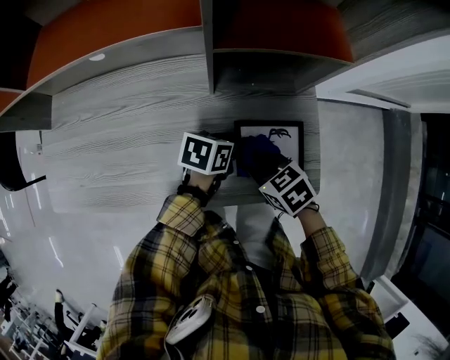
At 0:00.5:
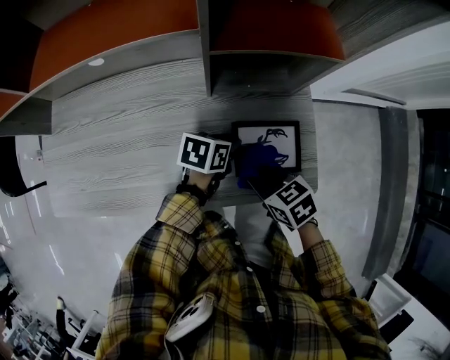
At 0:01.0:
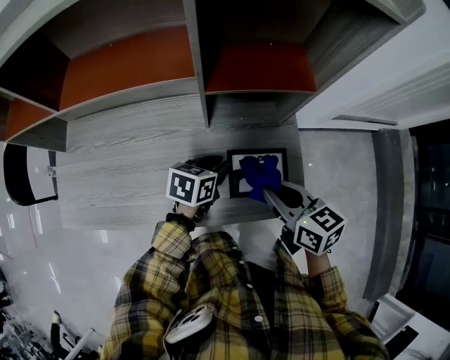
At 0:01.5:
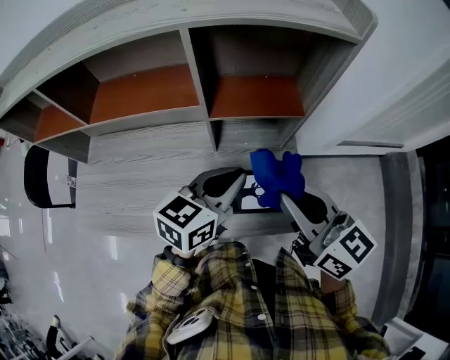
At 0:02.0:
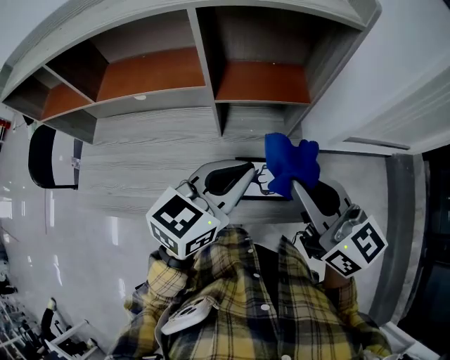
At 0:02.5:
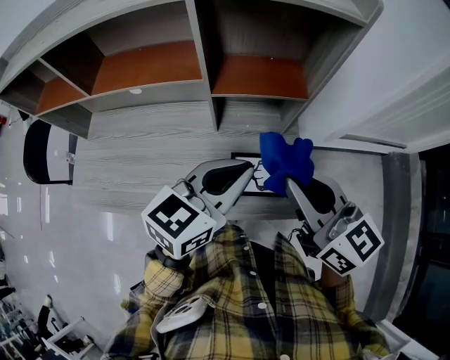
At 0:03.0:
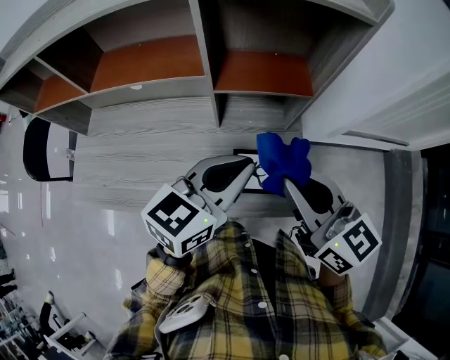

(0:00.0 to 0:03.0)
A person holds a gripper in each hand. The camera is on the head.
0:00.0 - 0:01.5: Both grippers travel together upward, about 30 cm. The right gripper tips its fingers upward by approximately 50 degrees. The left gripper swivels about 40 degrees.
0:01.5 - 0:03.0: The grippers move only a little.

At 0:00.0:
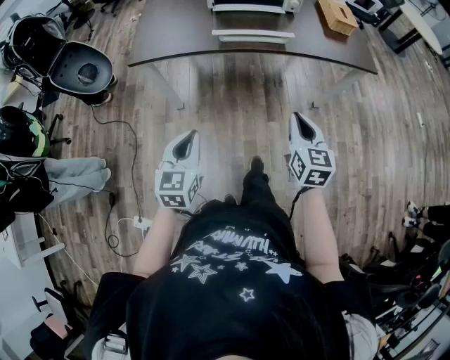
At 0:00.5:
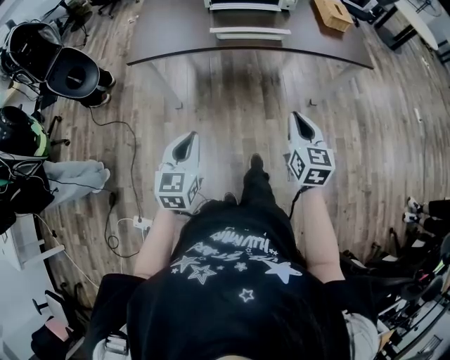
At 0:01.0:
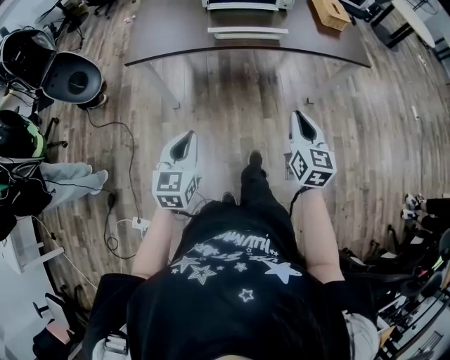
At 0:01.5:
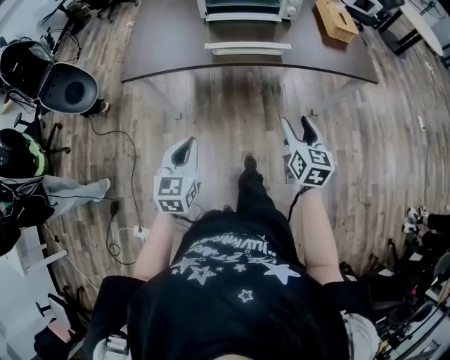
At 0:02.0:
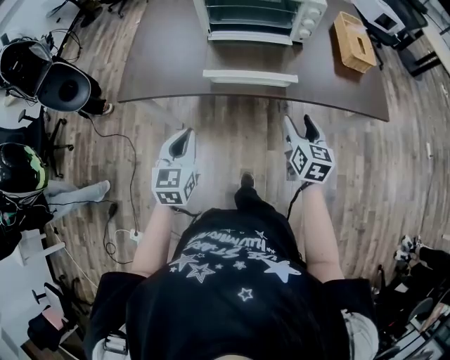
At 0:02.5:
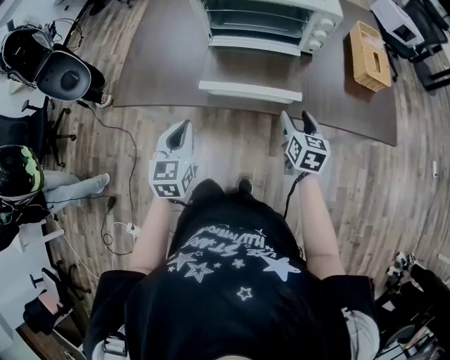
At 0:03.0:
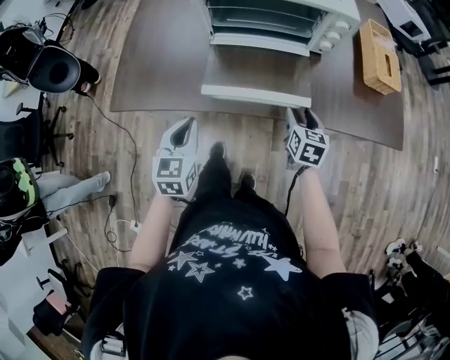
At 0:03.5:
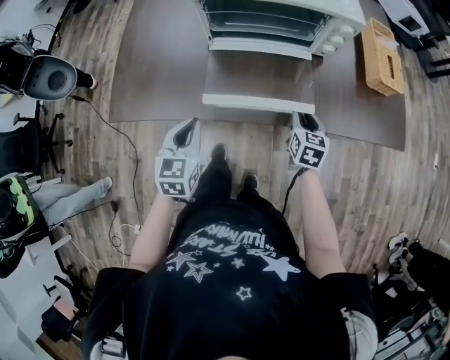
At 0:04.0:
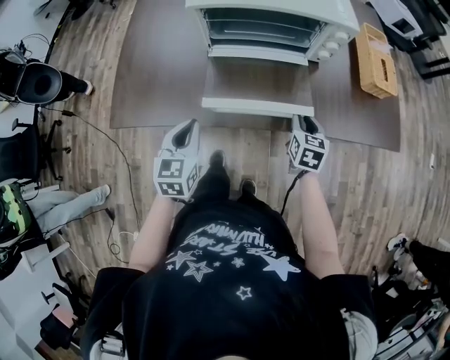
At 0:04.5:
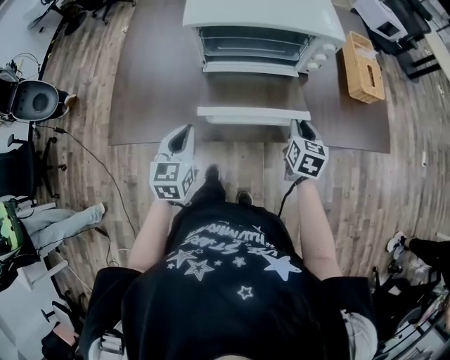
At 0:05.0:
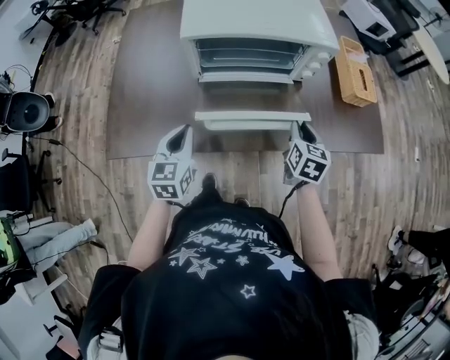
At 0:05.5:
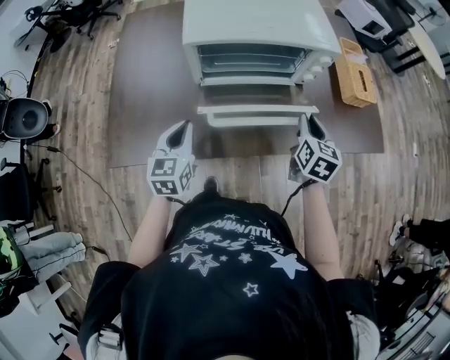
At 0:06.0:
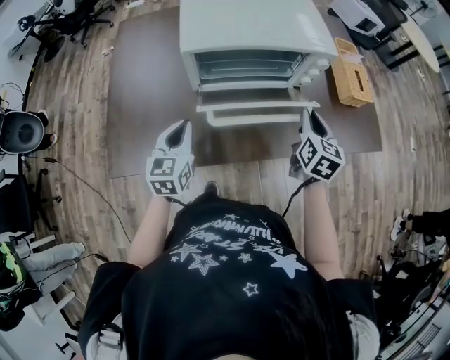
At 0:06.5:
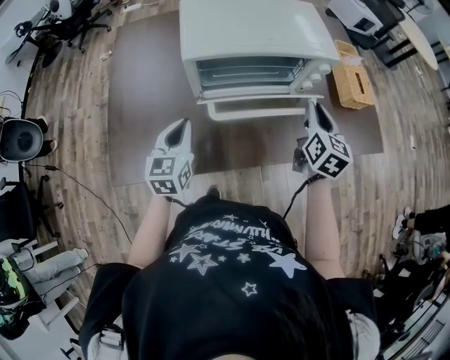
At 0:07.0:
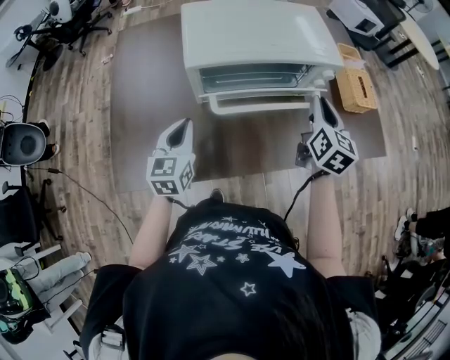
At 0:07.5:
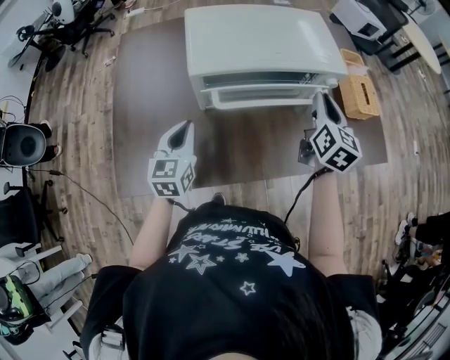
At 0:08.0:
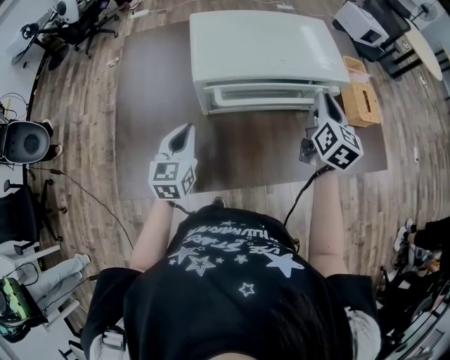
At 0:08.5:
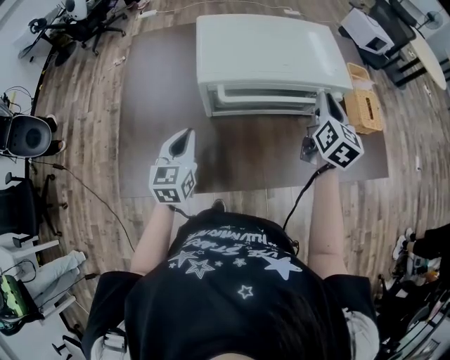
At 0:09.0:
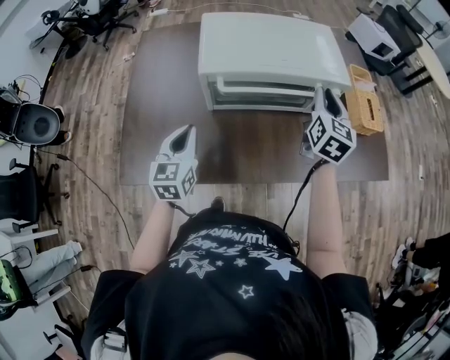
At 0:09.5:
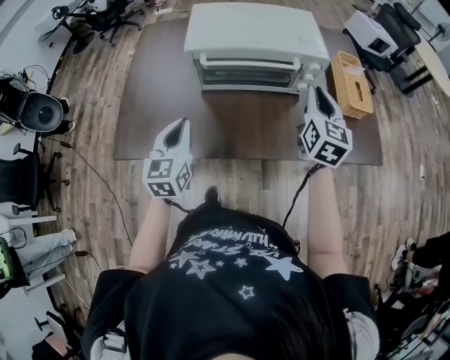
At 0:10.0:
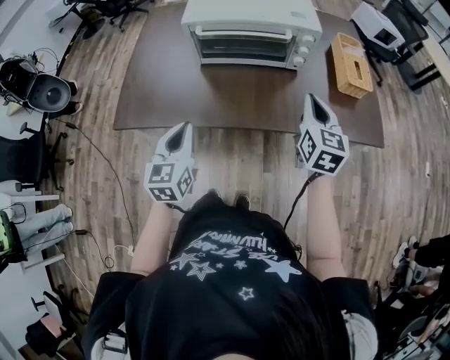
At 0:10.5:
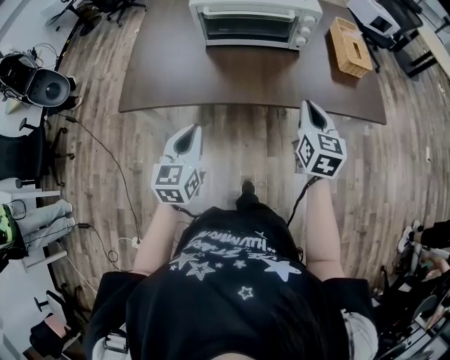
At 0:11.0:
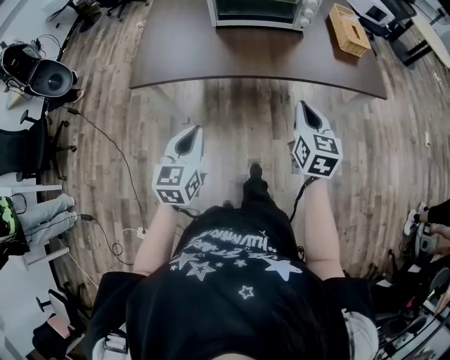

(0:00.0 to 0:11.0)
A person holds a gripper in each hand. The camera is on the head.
0:00.0 - 0:02.0: Both grippers travel together forward, about 25 cm. The right gripper opens its fingers.
0:02.0 - 0:03.5: The right gripper moves forward and downward, roughly 20 cm, and closes up, while the left gripper shifts some 15 cm forward.
0:03.5 - 0:05.5: The left gripper is displaced forward by approximately 10 cm. Meanwhile the right gripper is displaced upward by about 15 cm.
0:05.5 - 0:07.5: The right gripper goes about 15 cm forward and upward, while the left gripper travels forward by roughly 10 cm.
0:07.5 - 0:09.0: There are only small adjustments of the grippers.
0:09.0 - 0:11.0: The pair of grippers is taken backward, about 40 cm.

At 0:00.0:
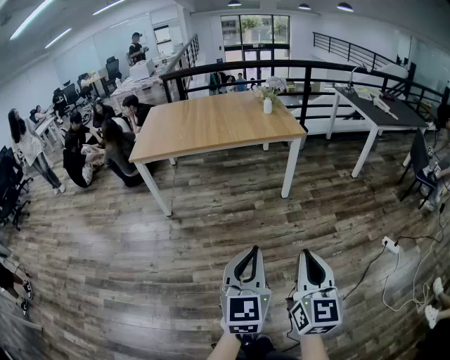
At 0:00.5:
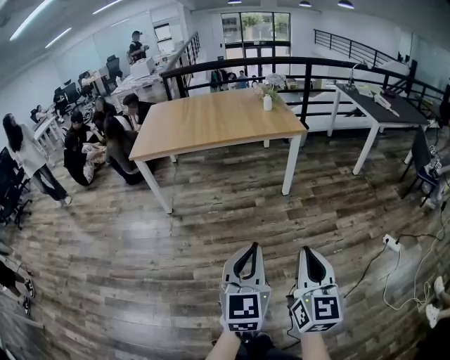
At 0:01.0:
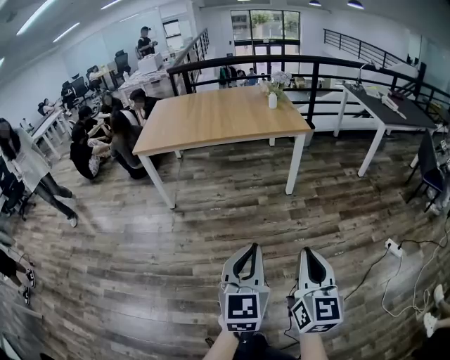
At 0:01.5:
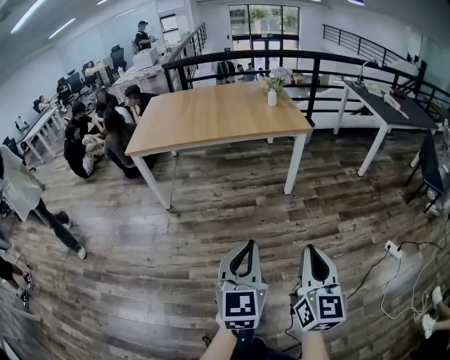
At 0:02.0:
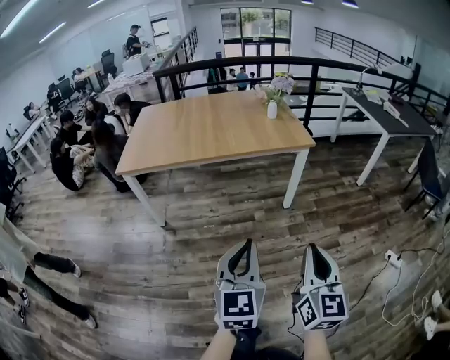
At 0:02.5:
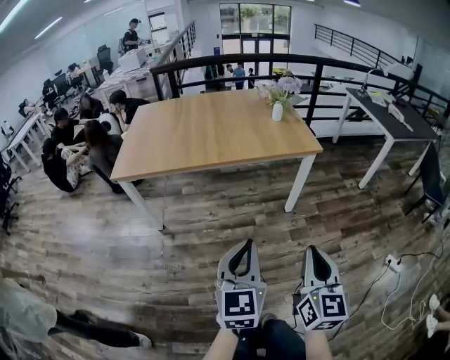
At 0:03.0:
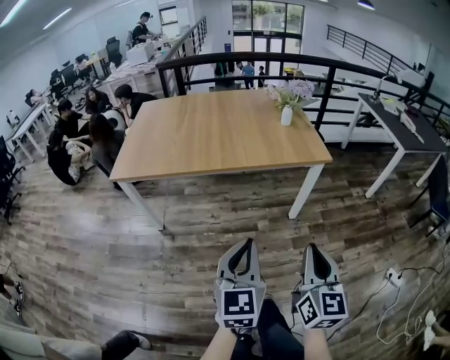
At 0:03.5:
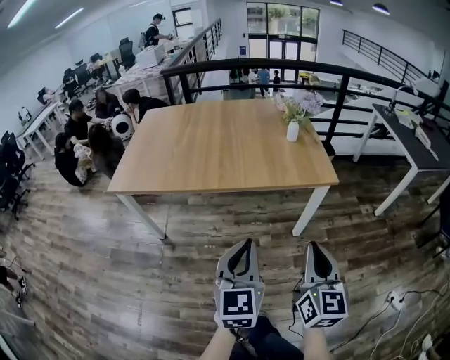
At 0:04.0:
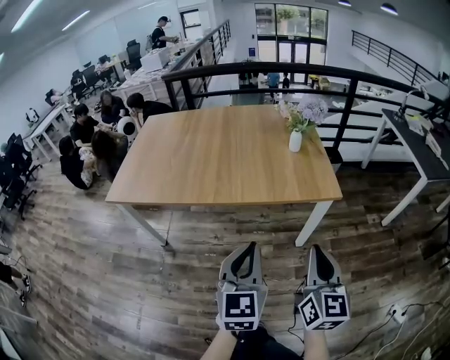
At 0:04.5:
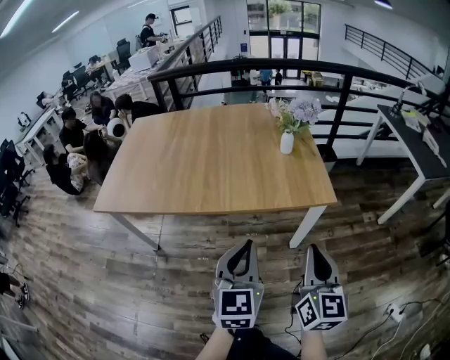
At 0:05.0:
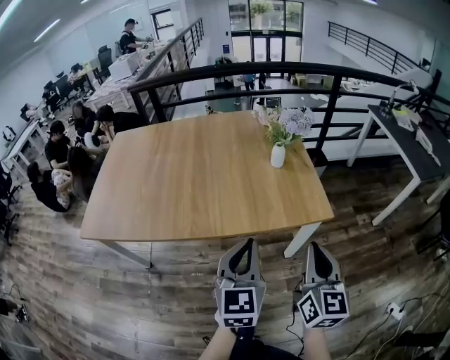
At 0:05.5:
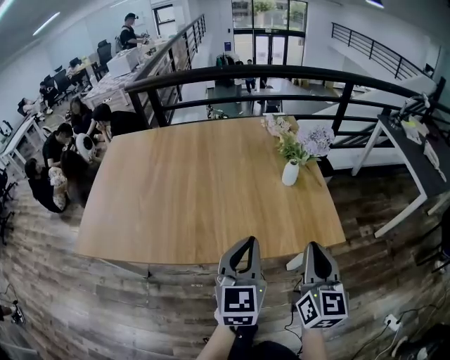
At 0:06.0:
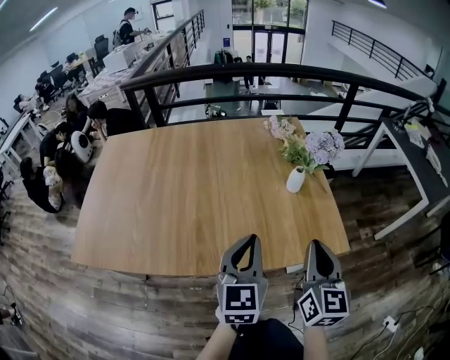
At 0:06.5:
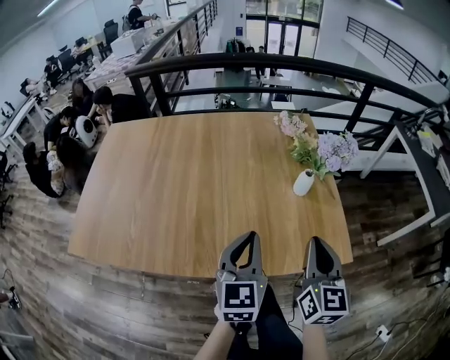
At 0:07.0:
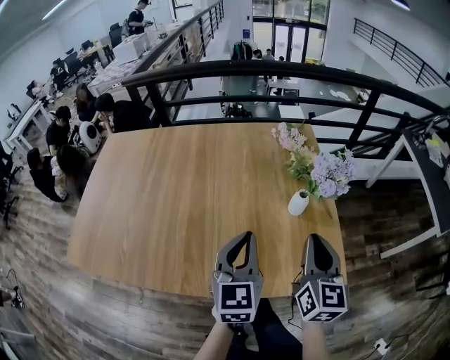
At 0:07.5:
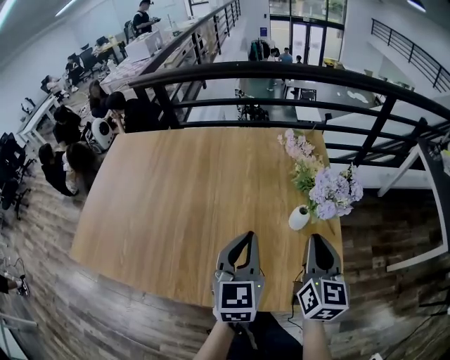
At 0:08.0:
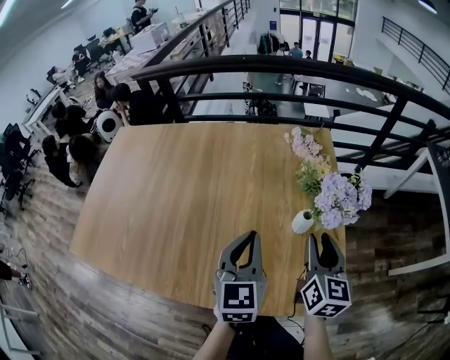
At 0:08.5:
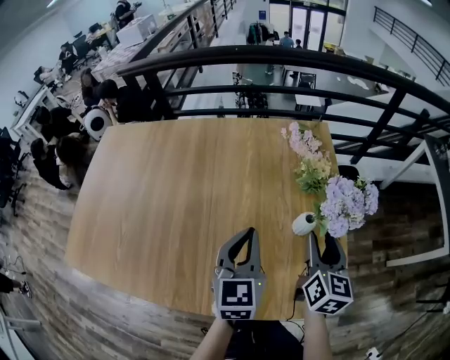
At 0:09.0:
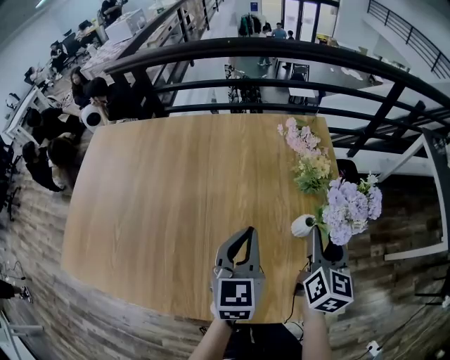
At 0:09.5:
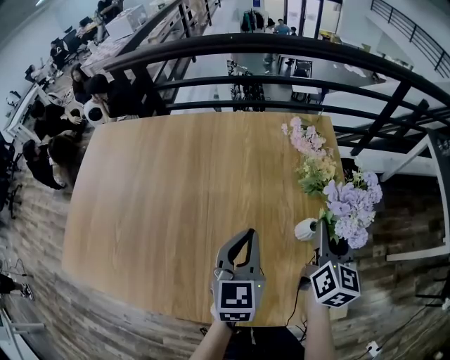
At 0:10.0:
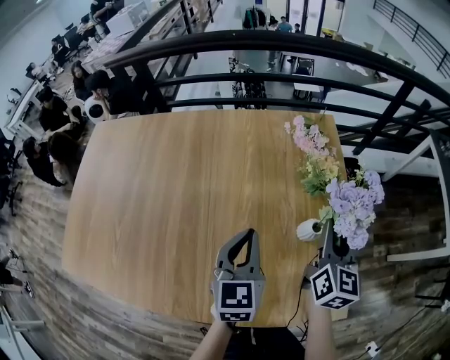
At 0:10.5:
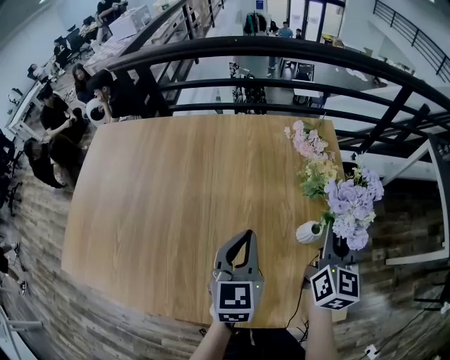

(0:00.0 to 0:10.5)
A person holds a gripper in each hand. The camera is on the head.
0:00.0 - 0:02.0: Both grippers travel together forward, roughly 20 cm.
0:02.0 - 0:04.0: Both grippers move forward, some 35 cm.
0:04.0 - 0:06.5: The grippers both shift forward by about 35 cm.
0:06.5 - 0:08.5: Both grippers travel together forward, some 20 cm. The right gripper opens its fingers.
0:08.5 - 0:10.5: The right gripper travels forward by approximately 5 cm, and closes up.

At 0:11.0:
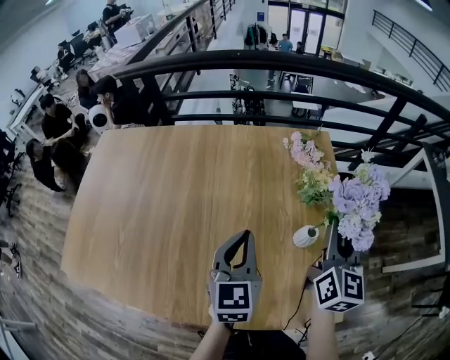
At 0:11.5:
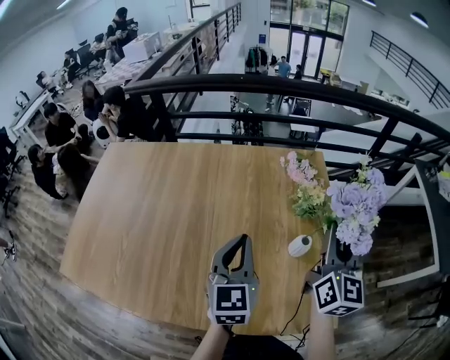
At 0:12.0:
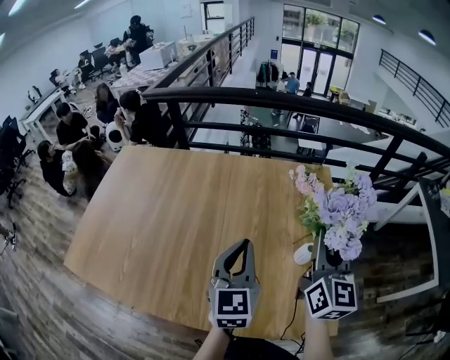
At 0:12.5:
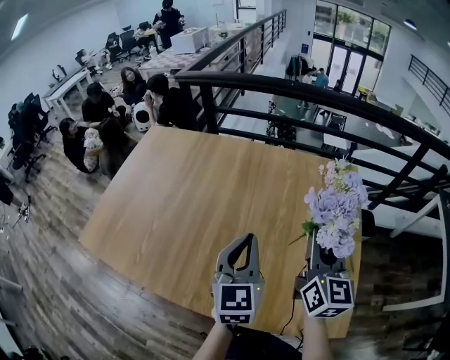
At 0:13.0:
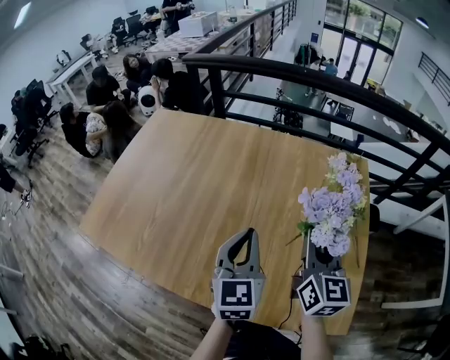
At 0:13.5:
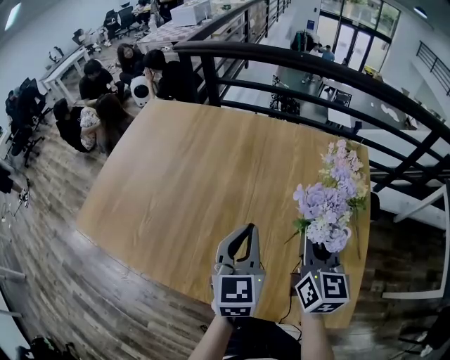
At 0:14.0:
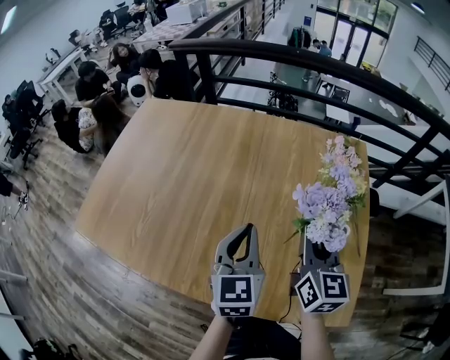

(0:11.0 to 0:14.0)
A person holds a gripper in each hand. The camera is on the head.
0:11.0 - 0:12.5: The left gripper is displaced to the left, upward and backward by about 10 cm. The right gripper goes roughly 15 cm to the left, and swivels roughly 20 degrees.
0:12.5 - 0:14.0: Both grippers move downward, roughly 5 cm.
